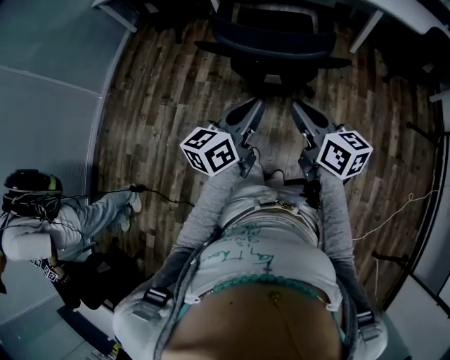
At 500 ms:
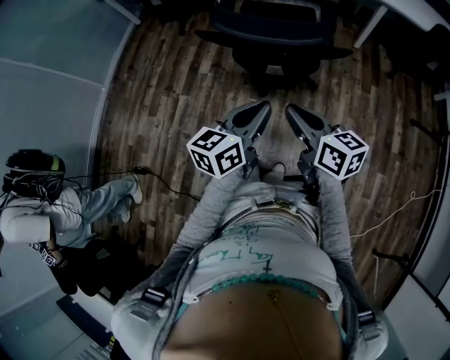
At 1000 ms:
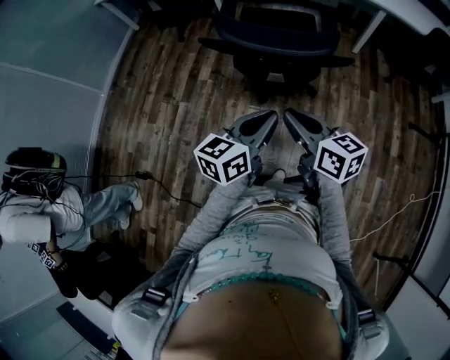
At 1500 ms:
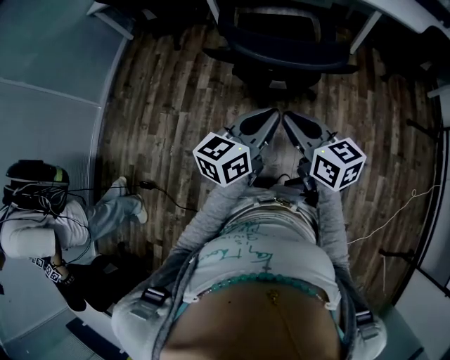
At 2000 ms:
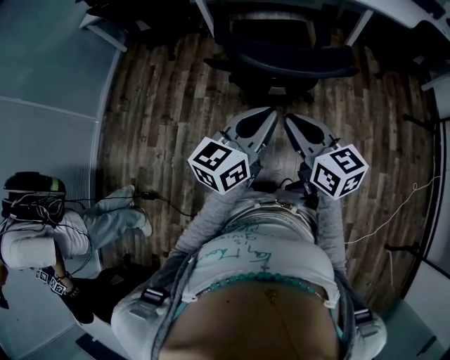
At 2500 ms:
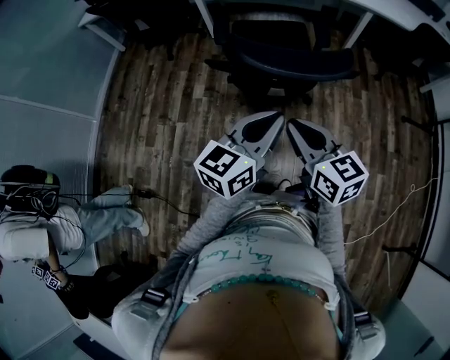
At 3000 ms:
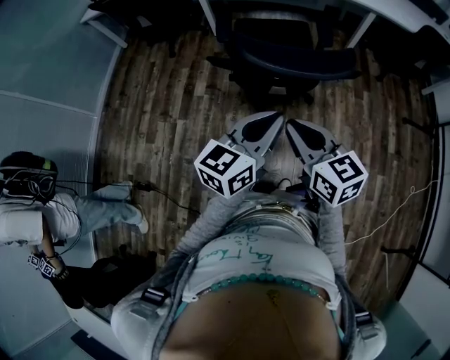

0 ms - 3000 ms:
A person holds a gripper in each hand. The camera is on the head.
0 ms - 1500 ms: The right gripper shifts some 5 cm to the left.
1500 ms - 3000 ms: The grippers move only a little.

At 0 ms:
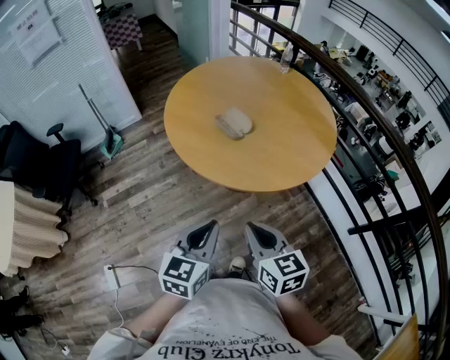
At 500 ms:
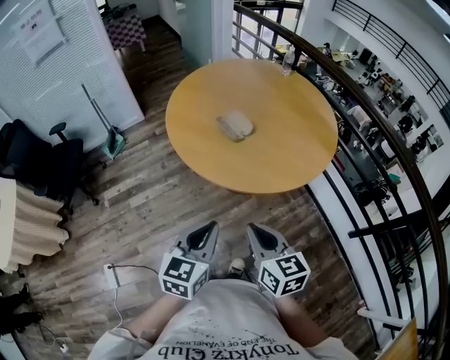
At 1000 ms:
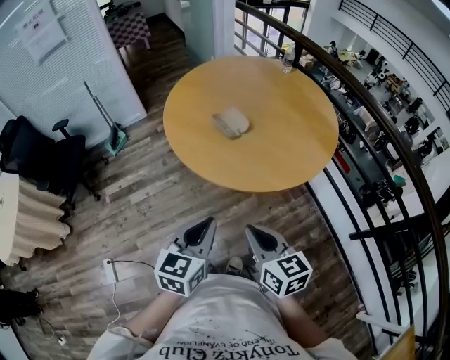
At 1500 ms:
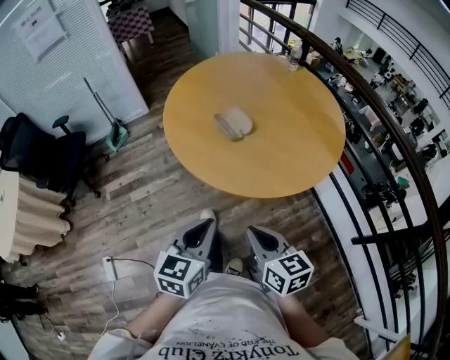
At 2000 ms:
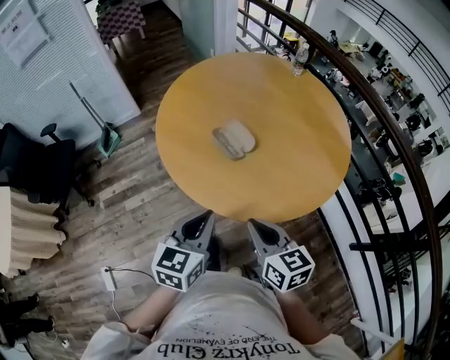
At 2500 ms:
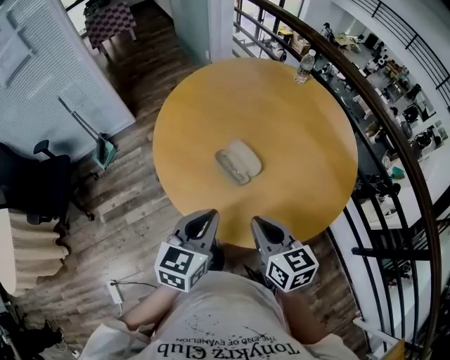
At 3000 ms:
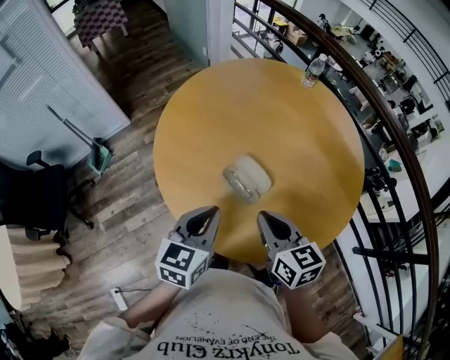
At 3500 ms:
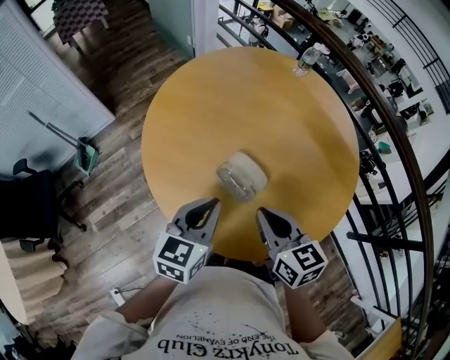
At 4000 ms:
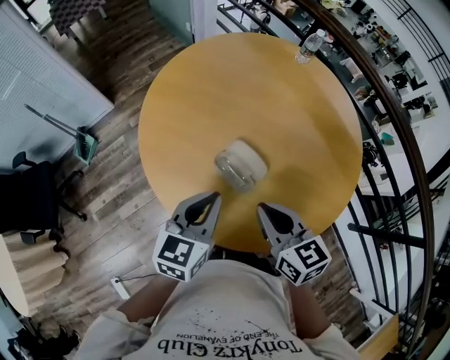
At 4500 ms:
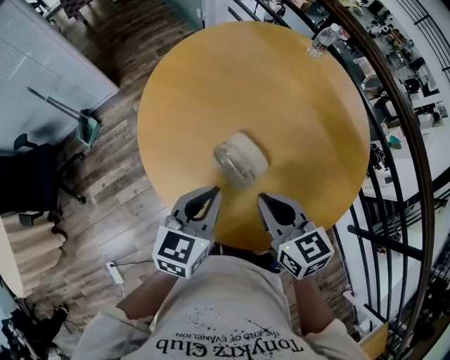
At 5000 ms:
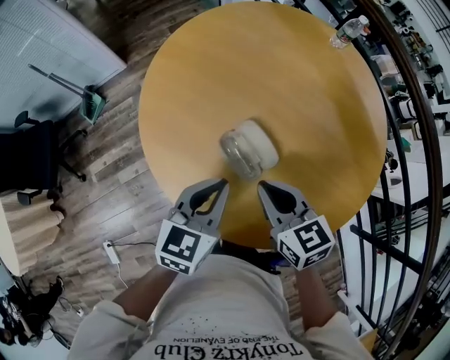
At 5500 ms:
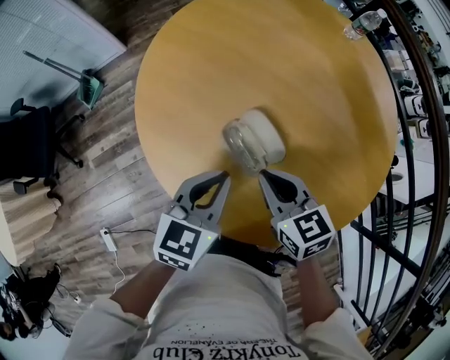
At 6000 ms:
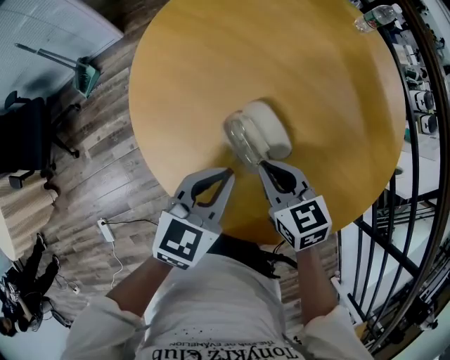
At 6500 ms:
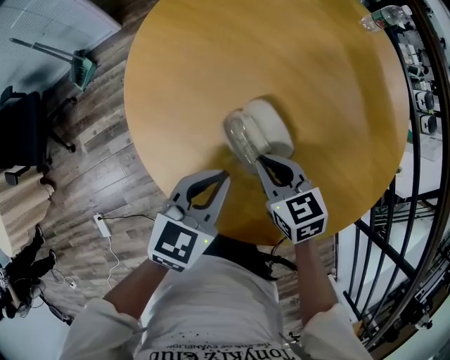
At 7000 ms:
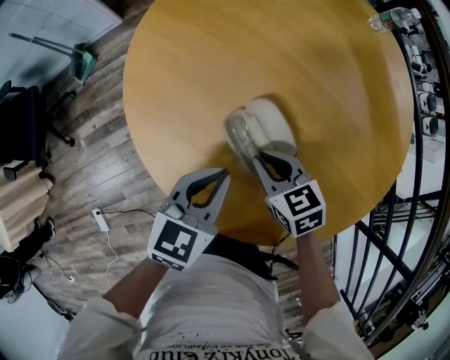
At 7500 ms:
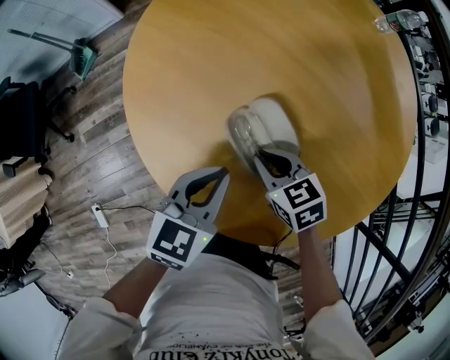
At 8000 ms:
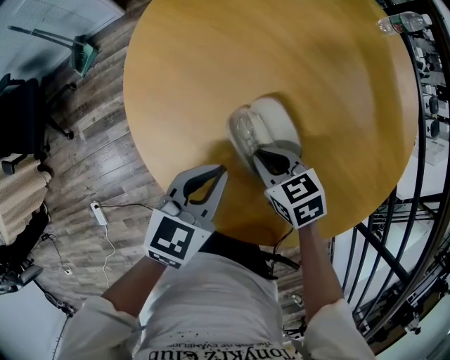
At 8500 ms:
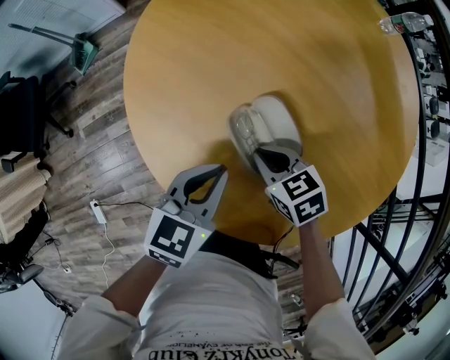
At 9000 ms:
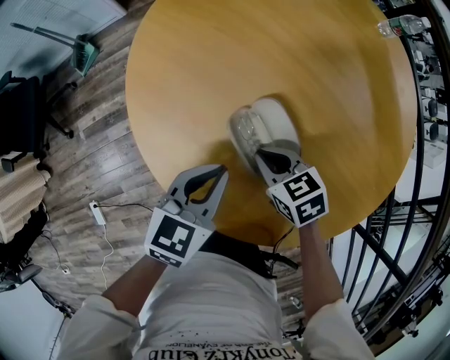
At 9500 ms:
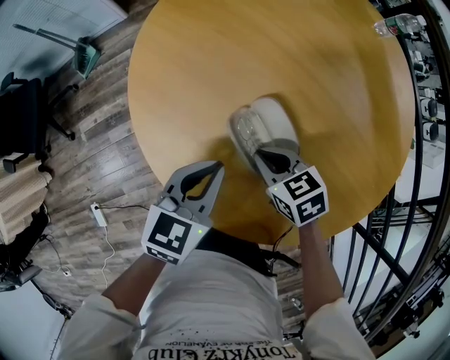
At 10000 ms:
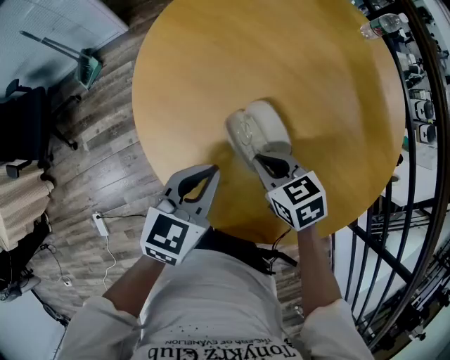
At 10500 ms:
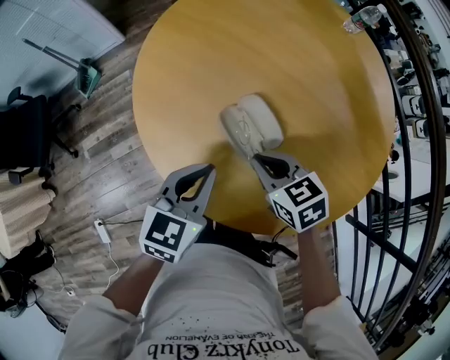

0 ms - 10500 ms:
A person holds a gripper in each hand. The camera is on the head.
0 ms - 2000 ms: The two grippers go some 15 cm forward.
2000 ms - 4000 ms: Both grippers travel together forward, roughly 25 cm.
4000 ms - 6500 ms: The right gripper is displaced downward by roughly 20 cm, and turns by approximately 30 degrees. The left gripper is displaced downward by approximately 10 cm.
6500 ms - 8500 ms: The right gripper shifts by about 5 cm.
8500 ms - 10500 ms: The right gripper goes some 10 cm upward; the left gripper is displaced upward by approximately 5 cm.

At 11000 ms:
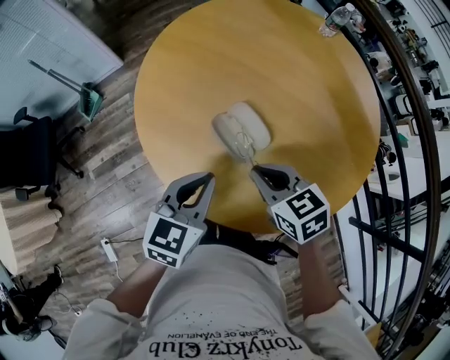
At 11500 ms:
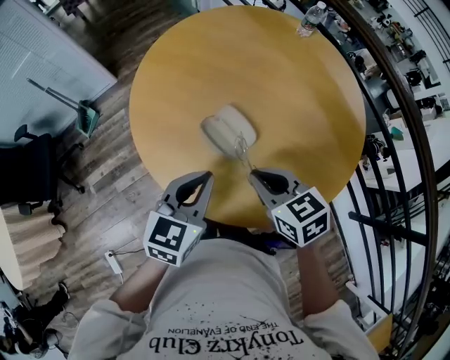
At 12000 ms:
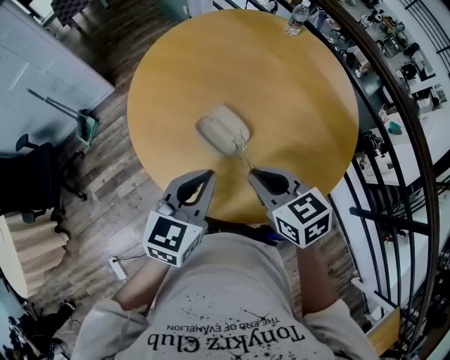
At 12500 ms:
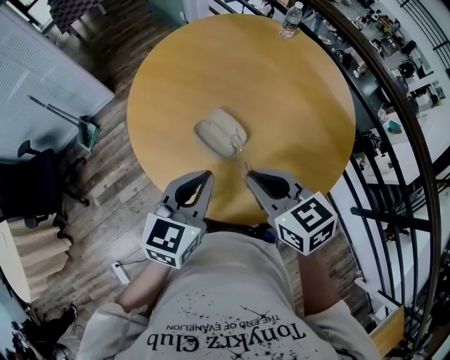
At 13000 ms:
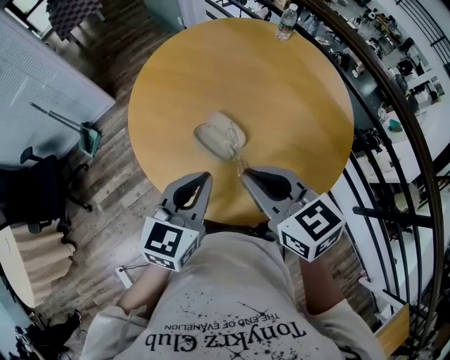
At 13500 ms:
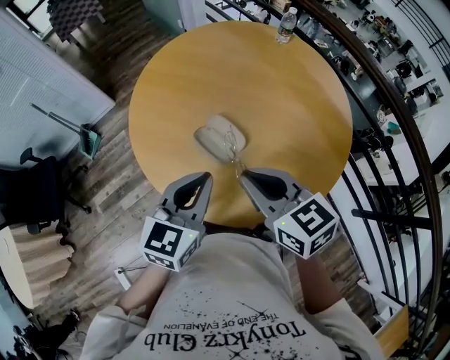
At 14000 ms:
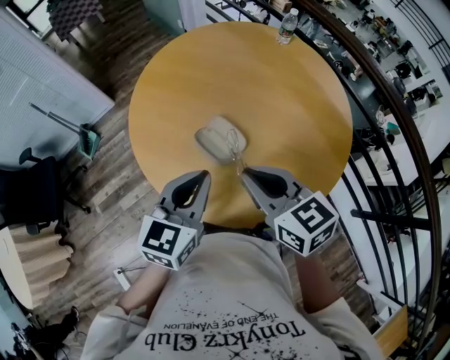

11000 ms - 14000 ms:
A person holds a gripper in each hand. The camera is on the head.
11000 ms - 12500 ms: The left gripper is displaced upward by some 10 cm. Meanwhile the right gripper moves upward and backward, about 15 cm.
12500 ms - 14000 ms: The grippers stay close to where they were, moving slightly.

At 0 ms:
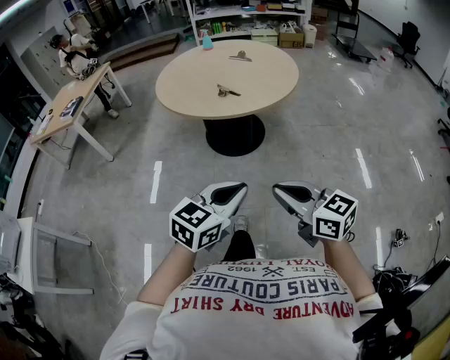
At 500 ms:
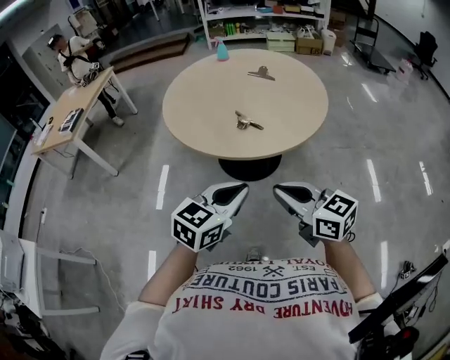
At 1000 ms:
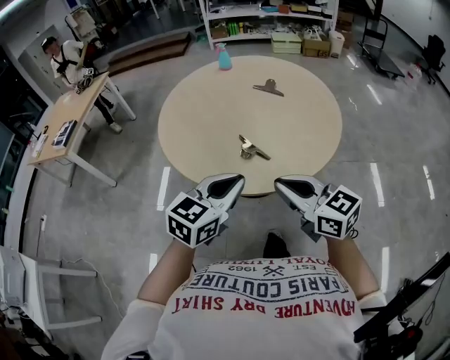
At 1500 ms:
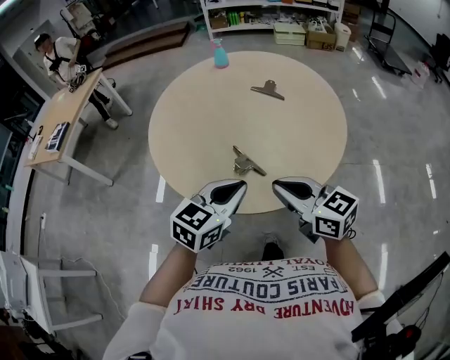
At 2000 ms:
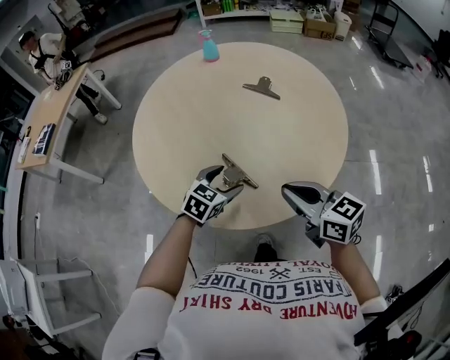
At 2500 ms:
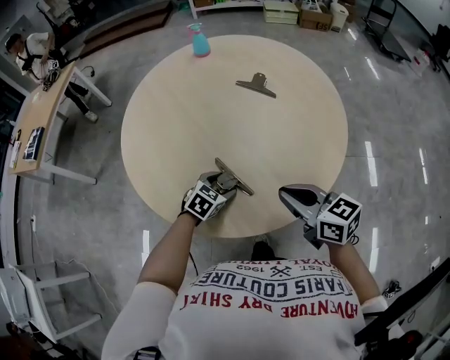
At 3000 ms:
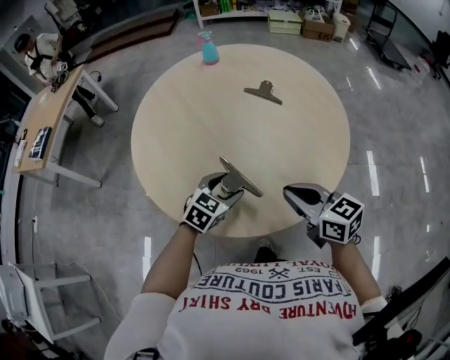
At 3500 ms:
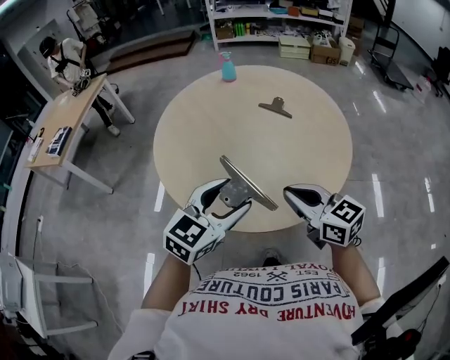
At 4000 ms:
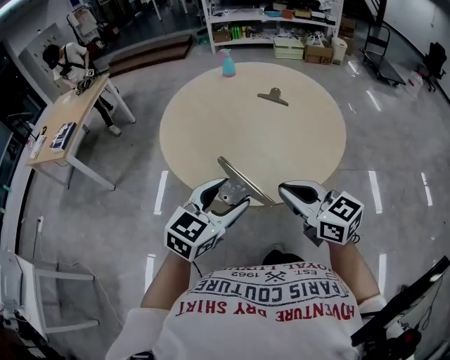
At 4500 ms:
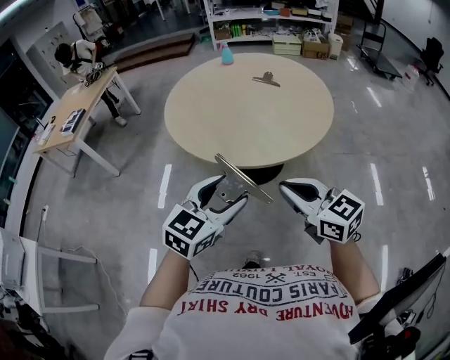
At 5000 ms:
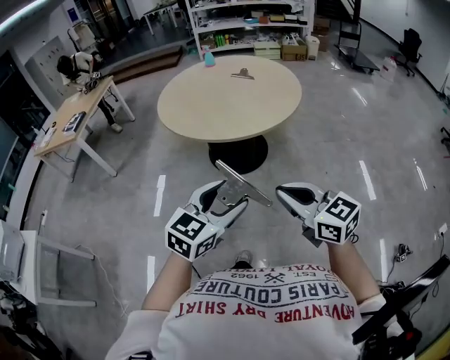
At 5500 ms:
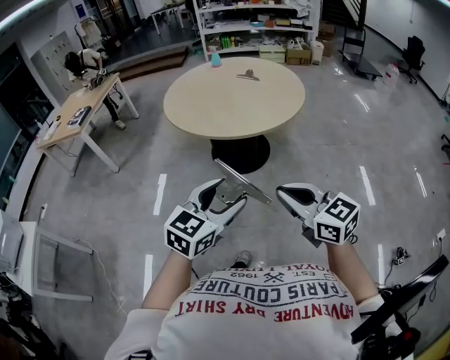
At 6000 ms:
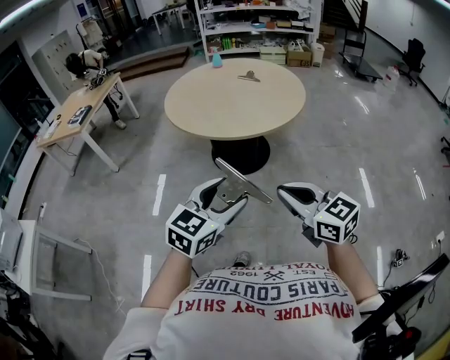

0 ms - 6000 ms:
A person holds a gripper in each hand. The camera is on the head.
0 ms - 2000 ms: The two grippers travel together, forward, approximately 60 cm. The left gripper swivels some 20 degrees, and opens.
2000 ms - 4000 ms: The right gripper travels backward, to the left and upward by about 15 cm; the left gripper is displaced backward and upward by approximately 30 cm, and swivels roughly 20 degrees.
4000 ms - 6000 ms: The pair of grippers is taken backward, approximately 40 cm.

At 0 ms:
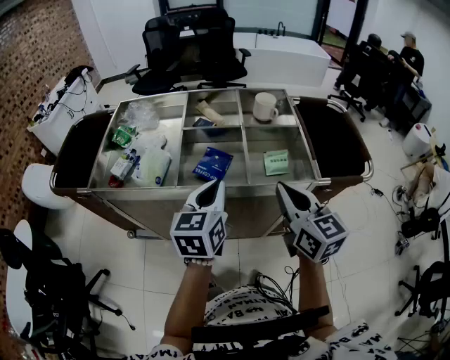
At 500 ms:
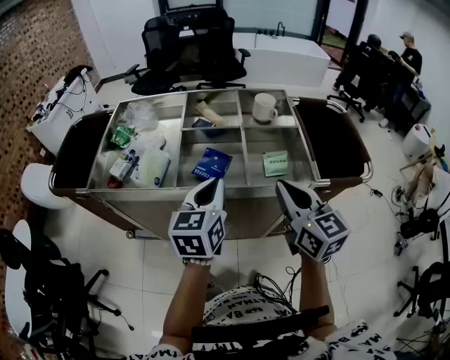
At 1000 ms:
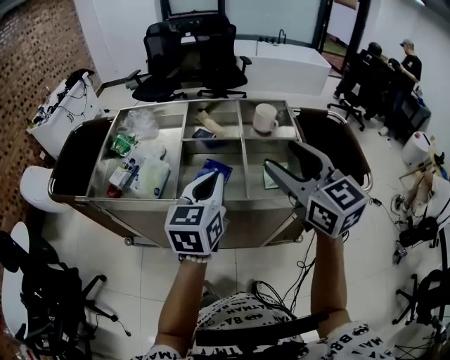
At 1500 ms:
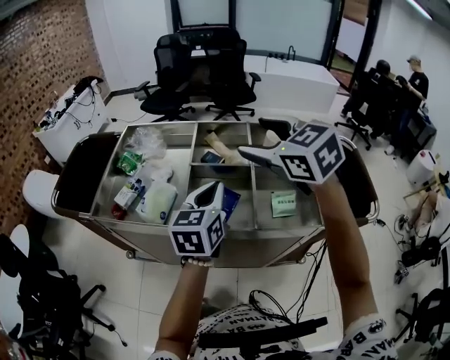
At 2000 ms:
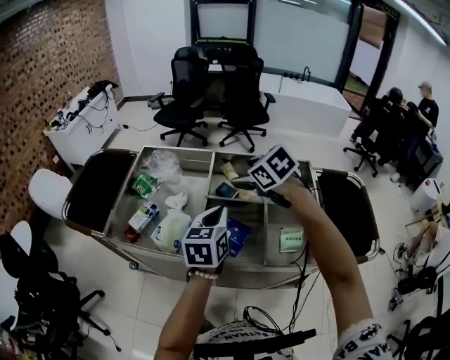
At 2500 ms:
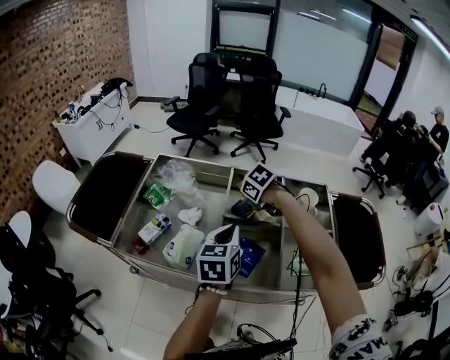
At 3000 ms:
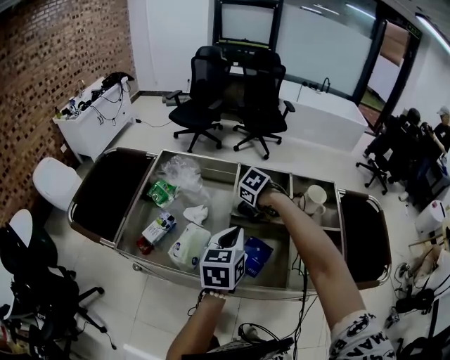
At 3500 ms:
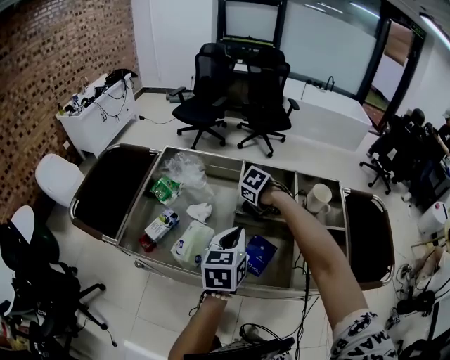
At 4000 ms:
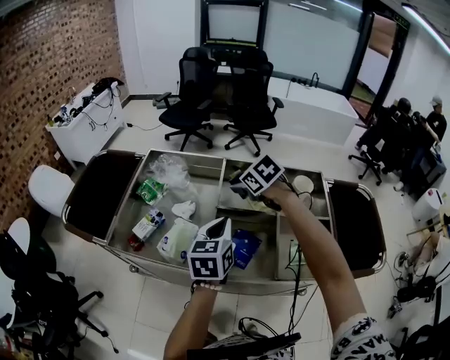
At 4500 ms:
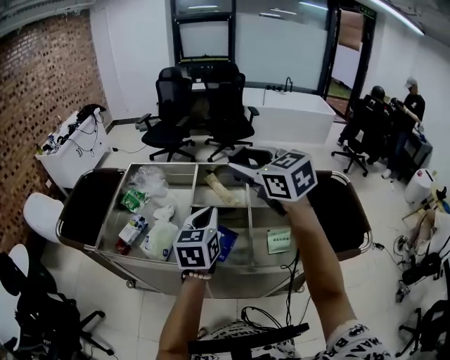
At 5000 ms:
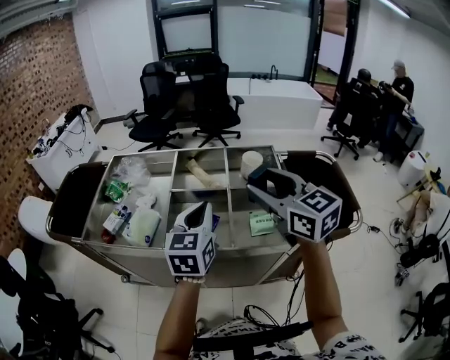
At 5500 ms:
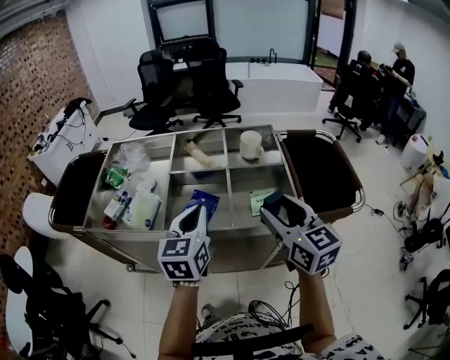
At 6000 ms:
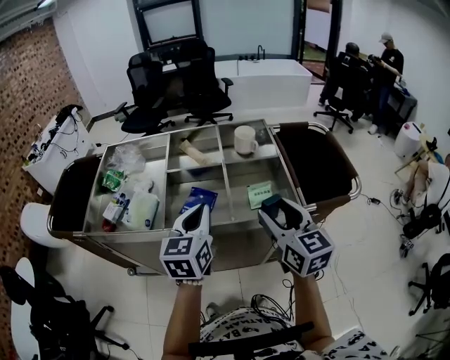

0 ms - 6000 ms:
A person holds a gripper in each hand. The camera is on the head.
0 ms - 2000 ms: The left gripper moves forward, about 15 cm, while the right gripper is displaced forward by roughly 30 cm, tips its fingers downward by about 40 degrees, and opens its fingers.
4000 ms - 6000 ms: The right gripper travels backward and to the right by about 40 cm, and tilts its fingers roughly 50 degrees upward, while the left gripper moves backward and to the right, roughly 15 cm.
